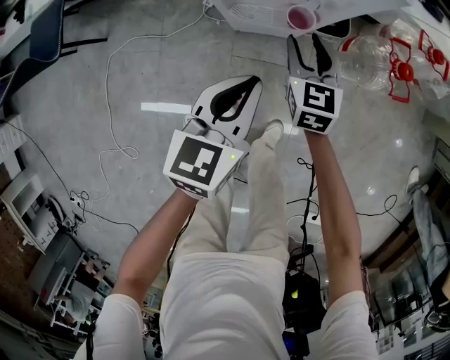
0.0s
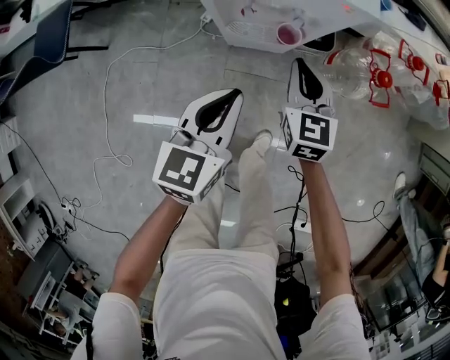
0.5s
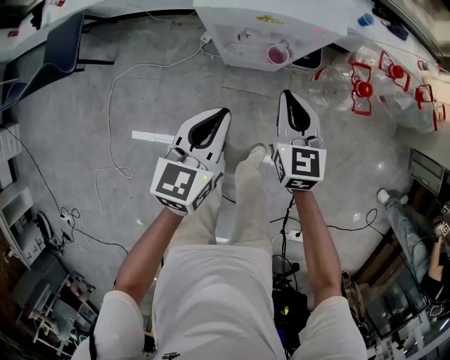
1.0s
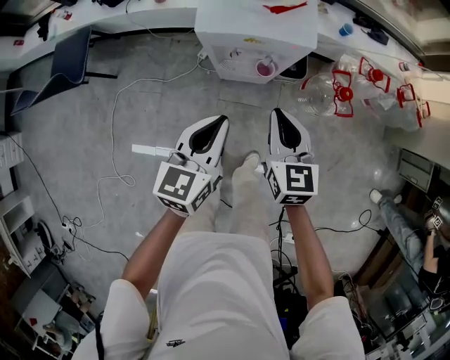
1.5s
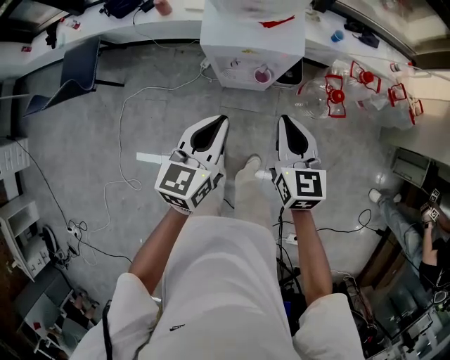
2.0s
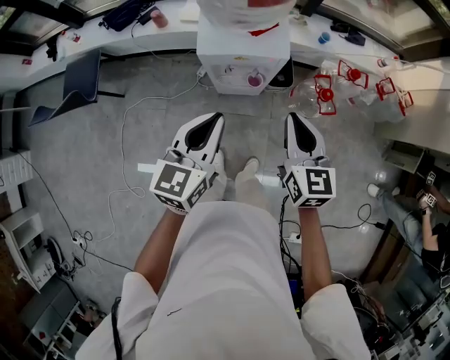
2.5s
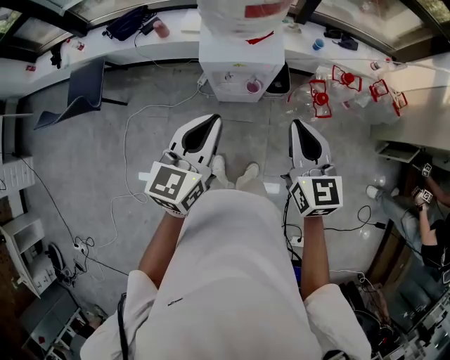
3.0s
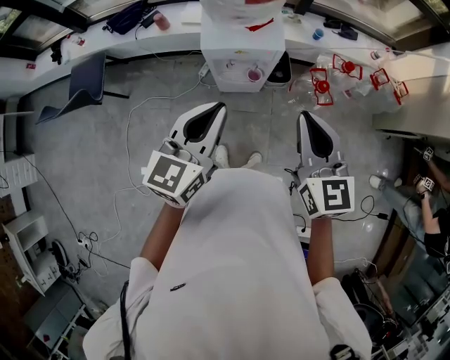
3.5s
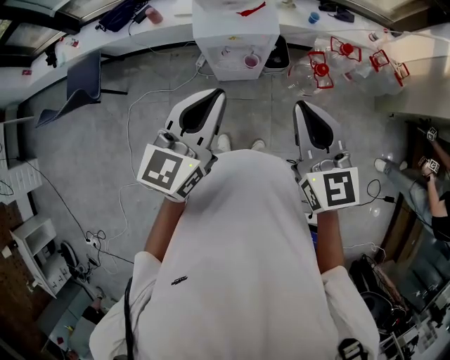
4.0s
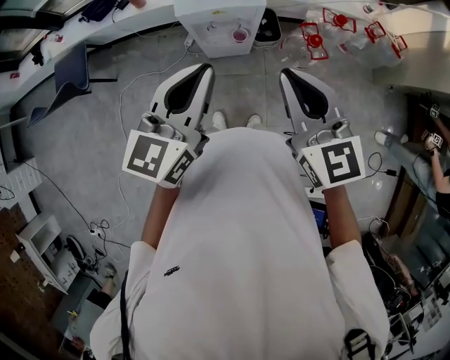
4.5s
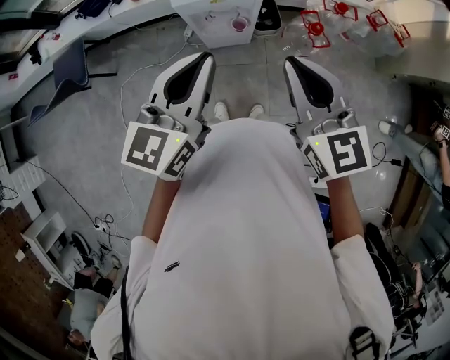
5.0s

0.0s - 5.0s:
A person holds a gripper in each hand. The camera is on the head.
0.0s - 2.5s: The grippers both shift upward by about 35 cm. The right gripper closes up.
2.5s - 5.0s: The grippers both shift upward and backward by about 15 cm.

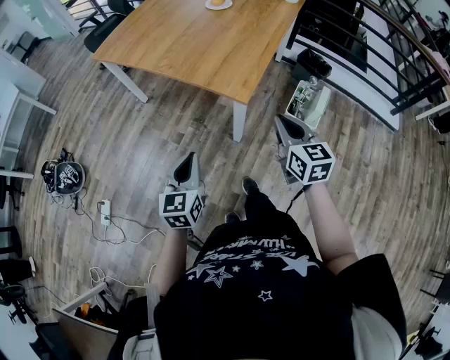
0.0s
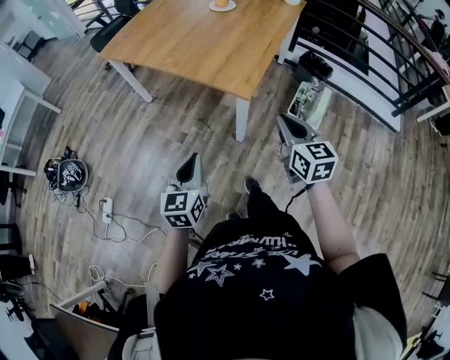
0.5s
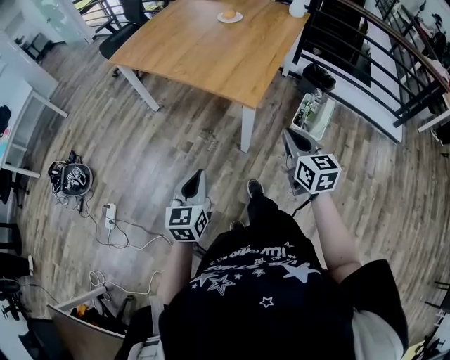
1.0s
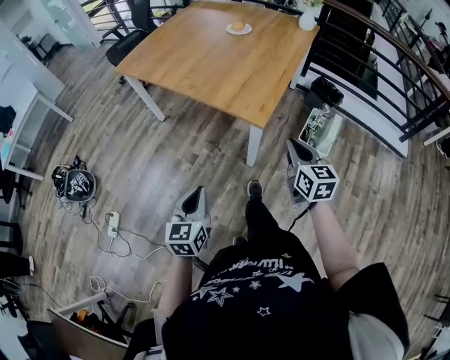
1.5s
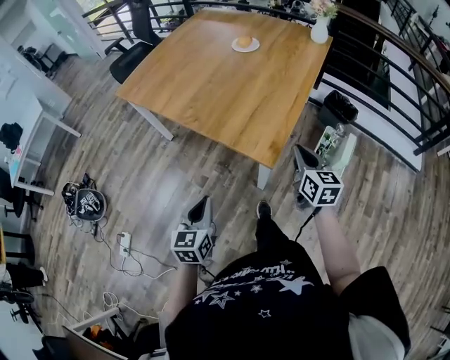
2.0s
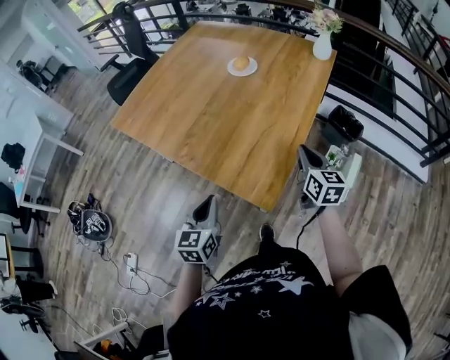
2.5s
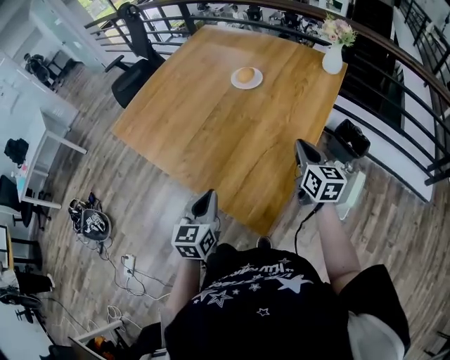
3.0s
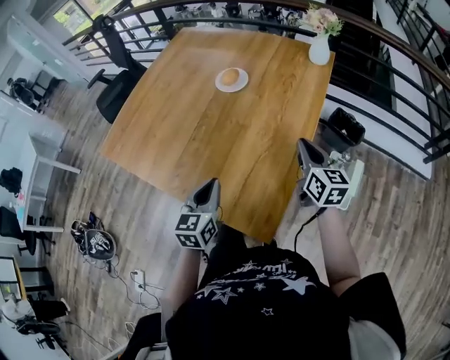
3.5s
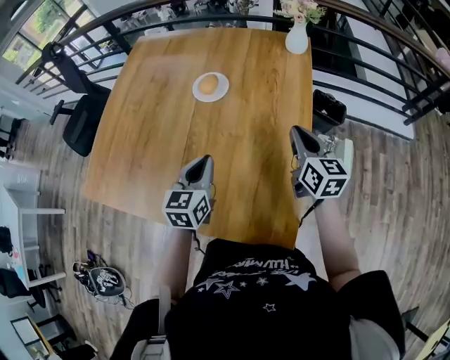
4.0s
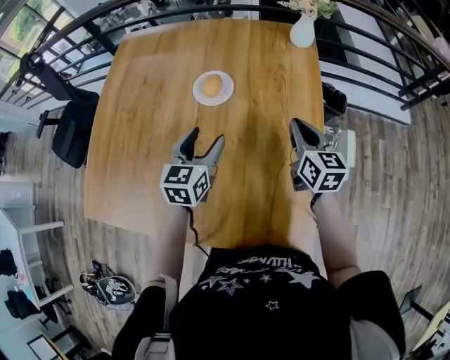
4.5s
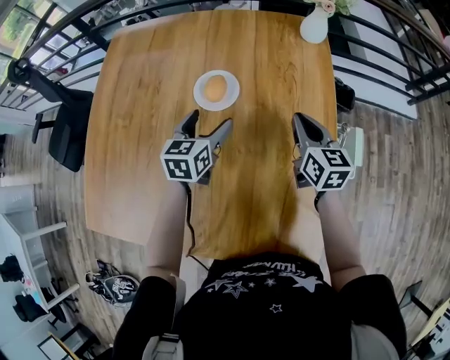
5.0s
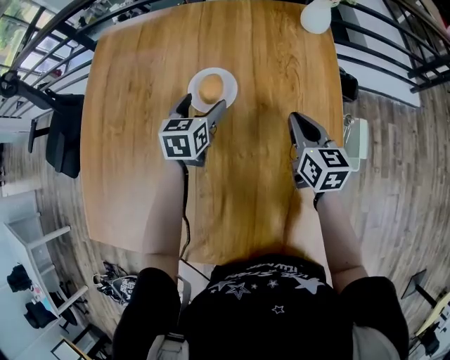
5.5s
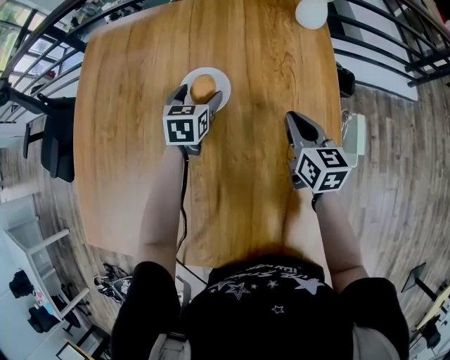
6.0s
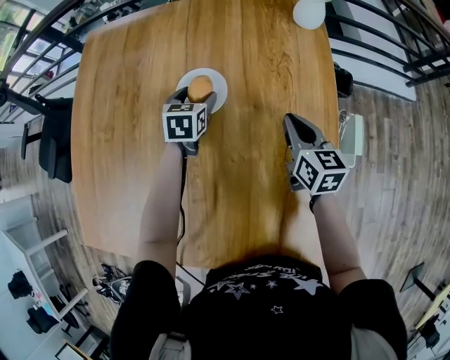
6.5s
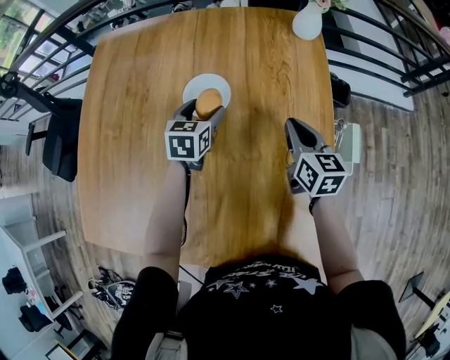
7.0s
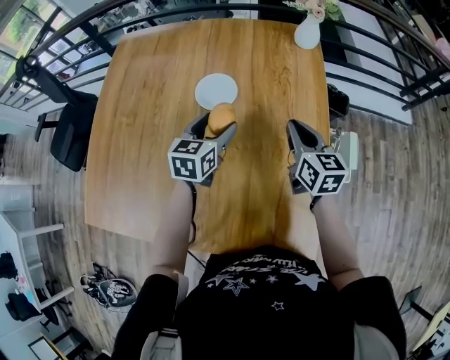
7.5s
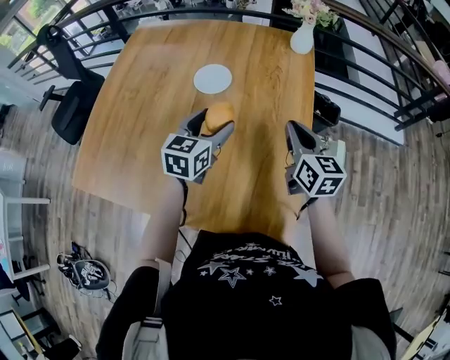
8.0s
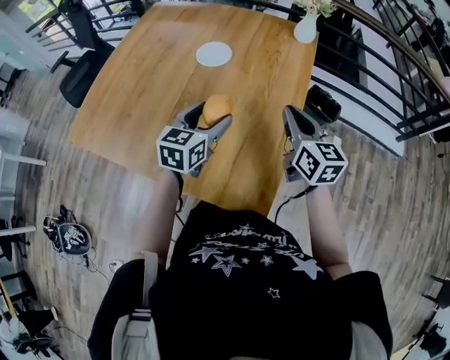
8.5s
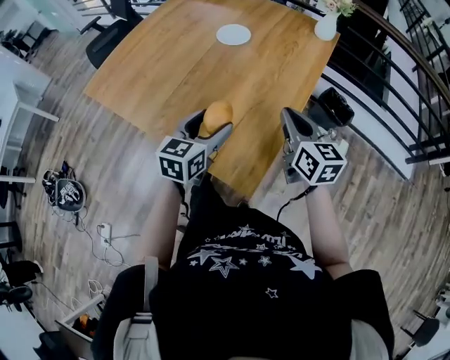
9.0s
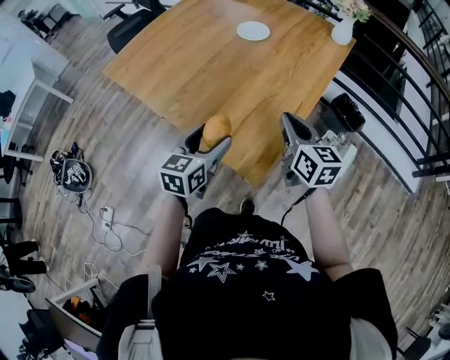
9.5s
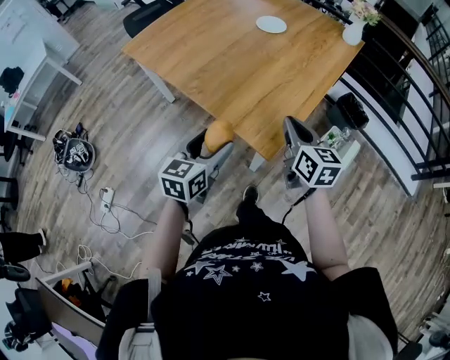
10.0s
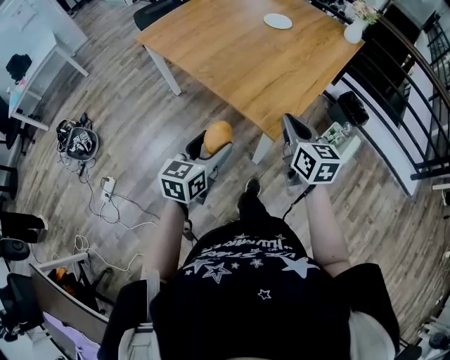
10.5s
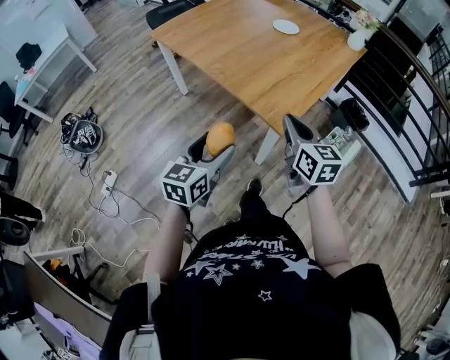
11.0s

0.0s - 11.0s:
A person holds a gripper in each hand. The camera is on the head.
0.0s - 2.0s: The right gripper moves forward, roughly 15 cm; the left gripper moves forward, approximately 10 cm.
2.0s - 3.5s: The two grippers go roughly 30 cm forward.
3.5s - 5.5s: The left gripper shifts roughly 50 cm forward, rotates roughly 30 degrees, and opens; the right gripper goes some 25 cm forward and to the left, and rotates about 20 degrees.
5.5s - 7.5s: The right gripper shifts about 10 cm backward and upward; the left gripper travels backward, upward and to the right by approximately 15 cm.
7.5s - 9.0s: The two grippers go approximately 25 cm backward. The right gripper turns by approximately 30 degrees; the left gripper changes its angle by about 20 degrees.
9.0s - 11.0s: The left gripper shifts some 35 cm backward. The right gripper travels backward and to the left by some 30 cm.

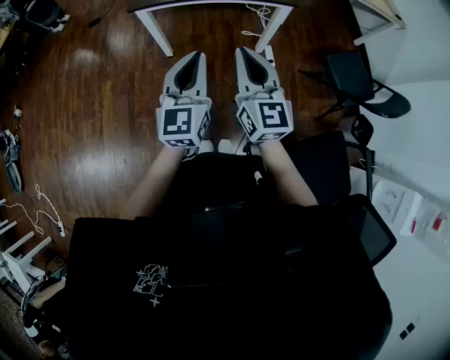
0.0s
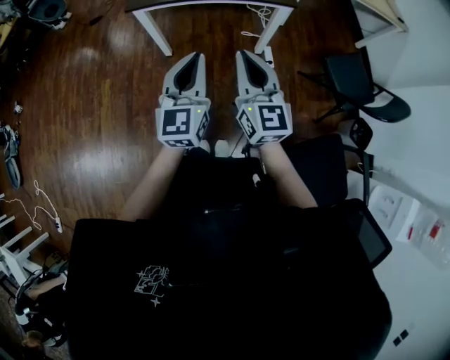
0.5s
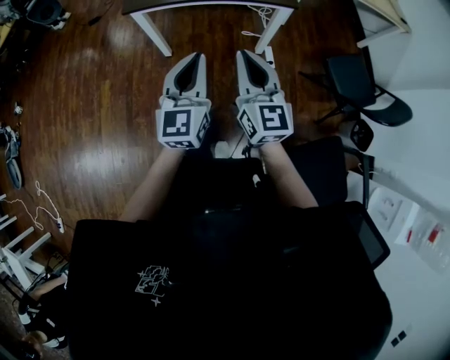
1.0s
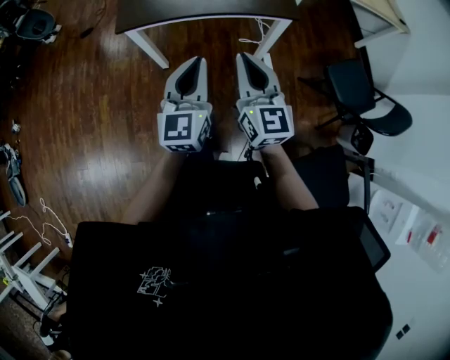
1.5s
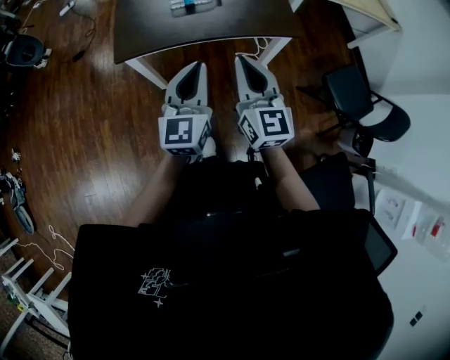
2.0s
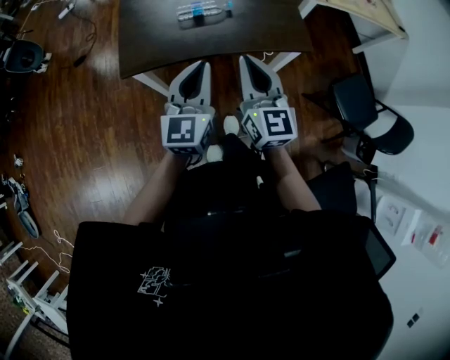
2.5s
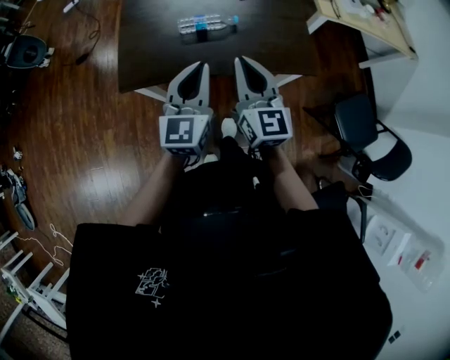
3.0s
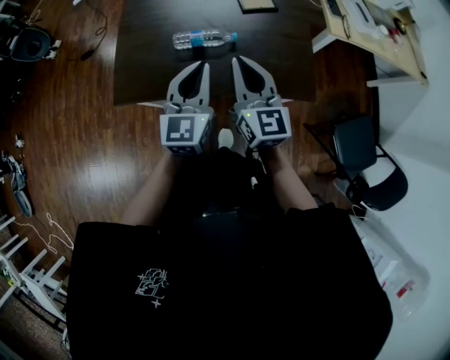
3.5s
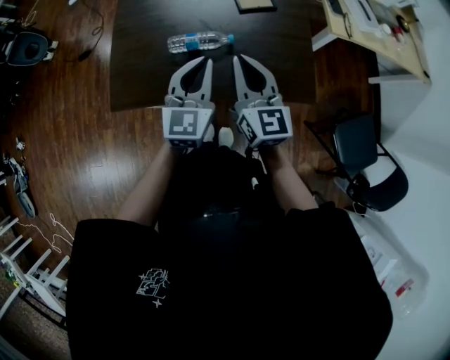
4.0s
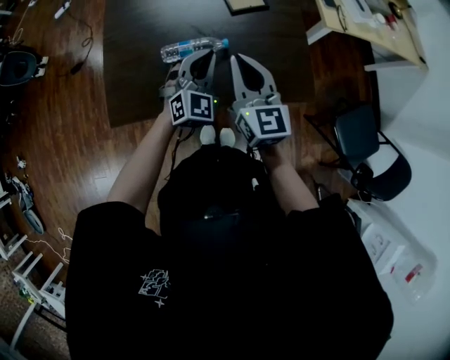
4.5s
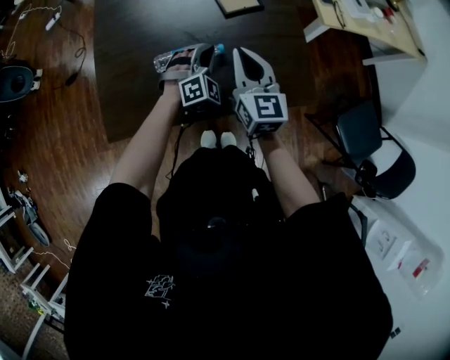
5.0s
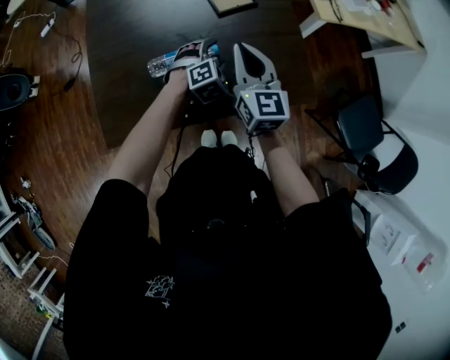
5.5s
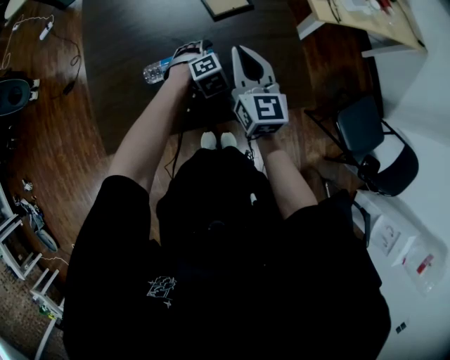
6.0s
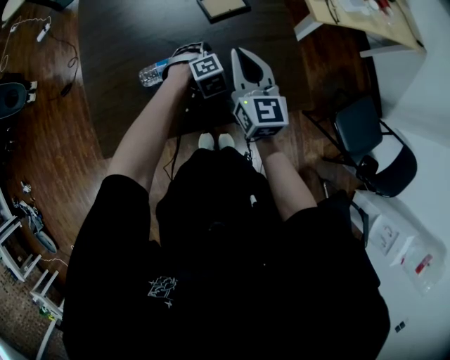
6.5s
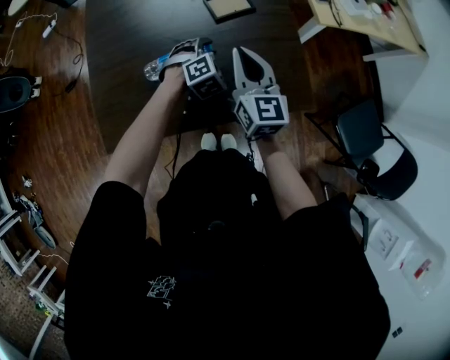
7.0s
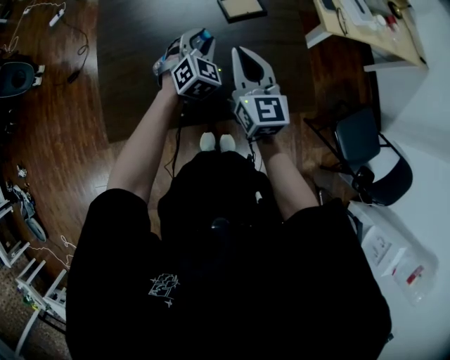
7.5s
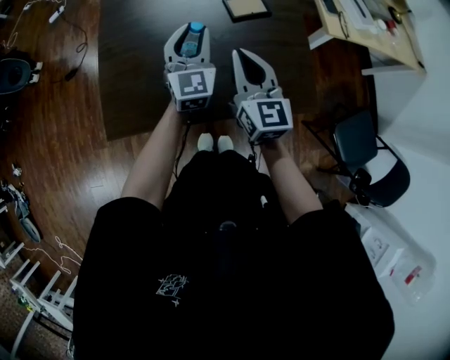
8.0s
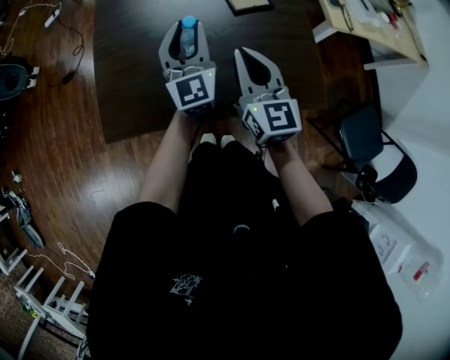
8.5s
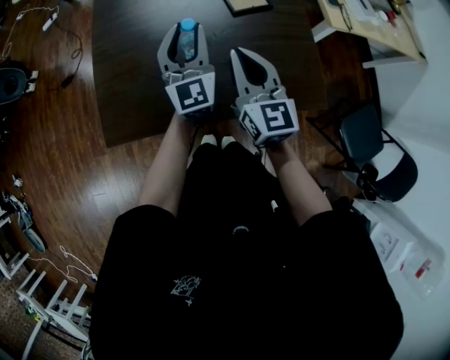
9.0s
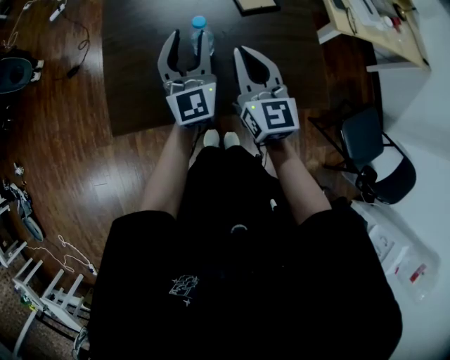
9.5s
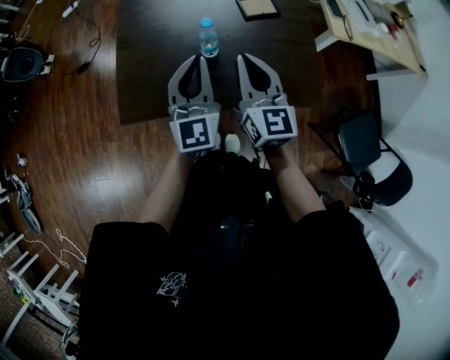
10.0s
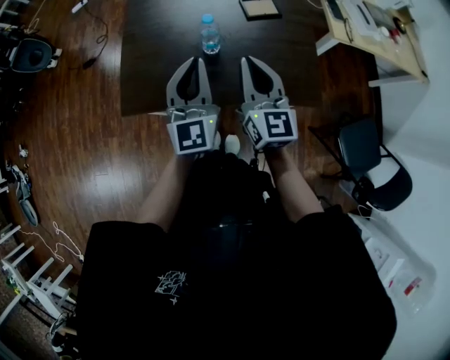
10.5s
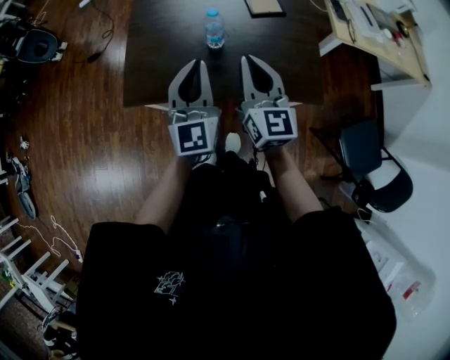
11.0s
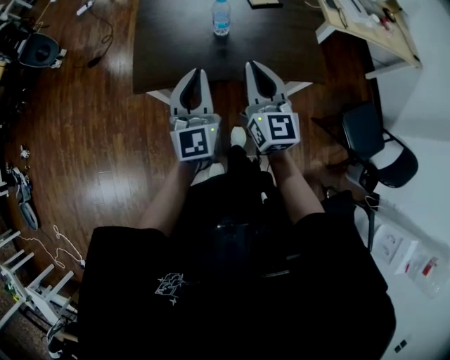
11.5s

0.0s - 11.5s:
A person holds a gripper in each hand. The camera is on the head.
0.0s - 2.0s: Both grippers move forward, approximately 20 cm.
2.0s - 4.0s: Both grippers travel together forward, roughly 30 cm.
4.0s - 6.0s: The right gripper is displaced forward, downward and to the right by approximately 15 cm, while the left gripper goes roughly 30 cm downward and forward, points its fingers approximately 50 degrees further downward, and opens its fingers.
6.0s - 7.5s: The left gripper is displaced upward and to the left by roughly 15 cm, angles its fingers upward, by some 30 degrees, and closes its fingers. Meanwhile the right gripper shifts by approximately 5 cm.
7.5s - 9.5s: The right gripper shifts by roughly 5 cm, while the left gripper goes some 15 cm upward and to the left, and tilts its fingers some 40 degrees upward.
9.5s - 11.5s: Both grippers travel together backward, roughly 25 cm. The left gripper closes.
